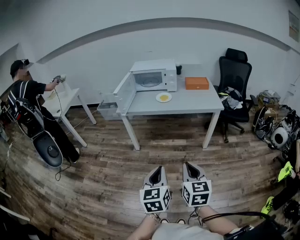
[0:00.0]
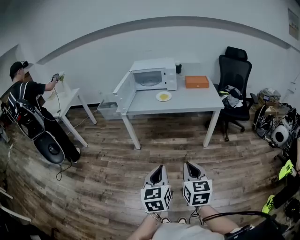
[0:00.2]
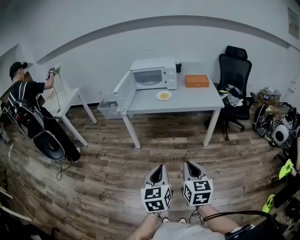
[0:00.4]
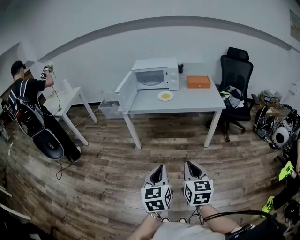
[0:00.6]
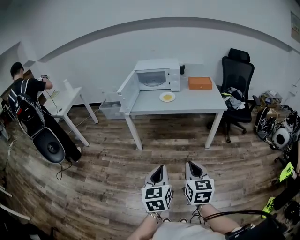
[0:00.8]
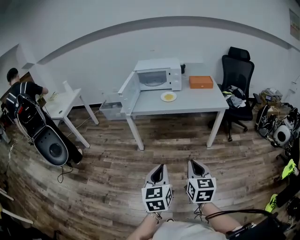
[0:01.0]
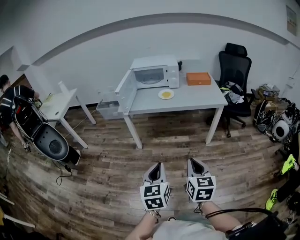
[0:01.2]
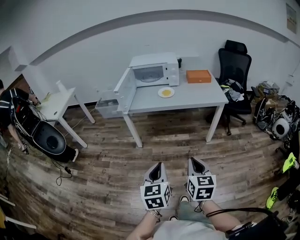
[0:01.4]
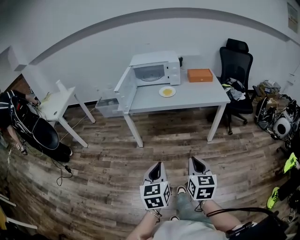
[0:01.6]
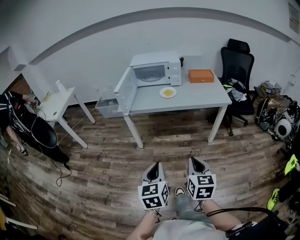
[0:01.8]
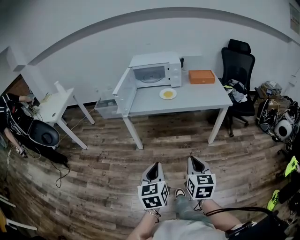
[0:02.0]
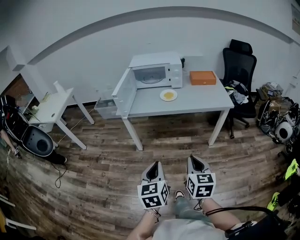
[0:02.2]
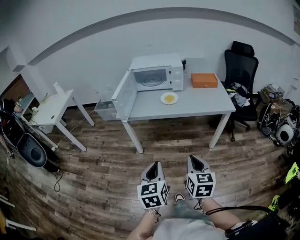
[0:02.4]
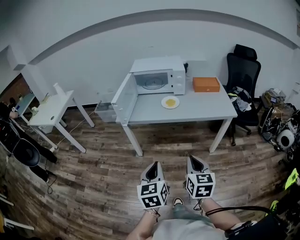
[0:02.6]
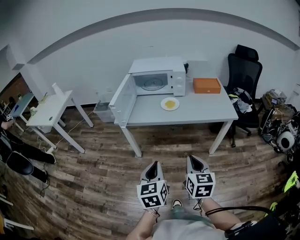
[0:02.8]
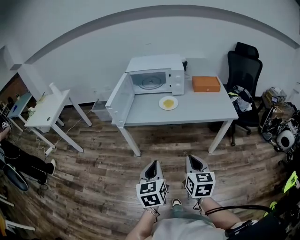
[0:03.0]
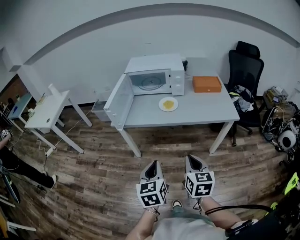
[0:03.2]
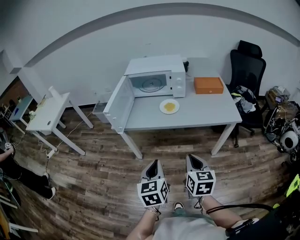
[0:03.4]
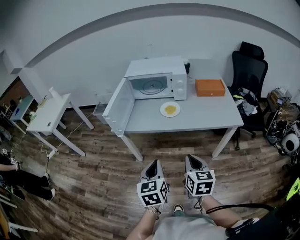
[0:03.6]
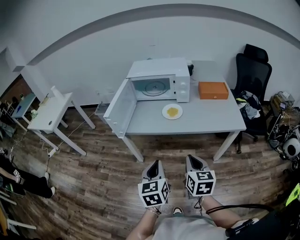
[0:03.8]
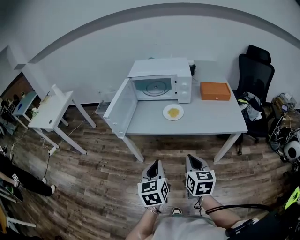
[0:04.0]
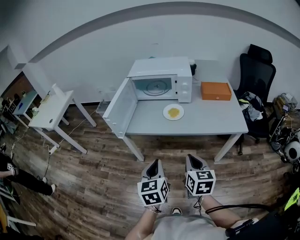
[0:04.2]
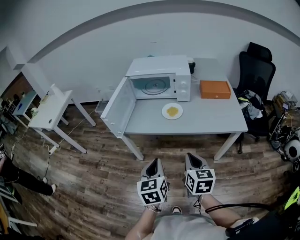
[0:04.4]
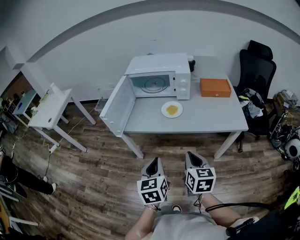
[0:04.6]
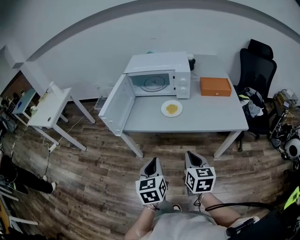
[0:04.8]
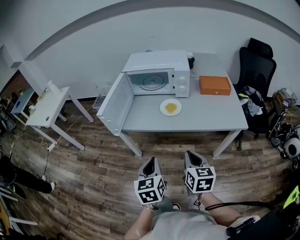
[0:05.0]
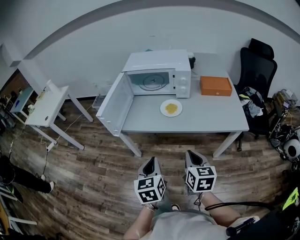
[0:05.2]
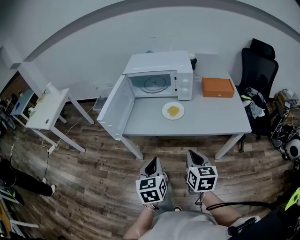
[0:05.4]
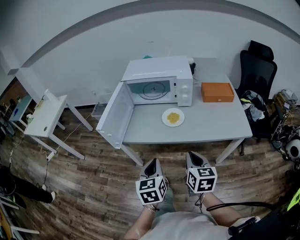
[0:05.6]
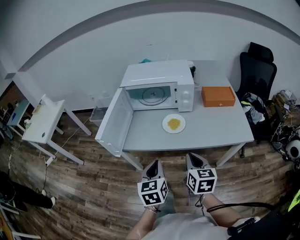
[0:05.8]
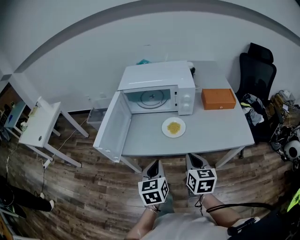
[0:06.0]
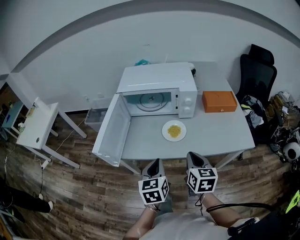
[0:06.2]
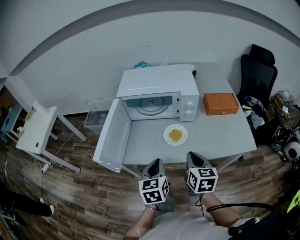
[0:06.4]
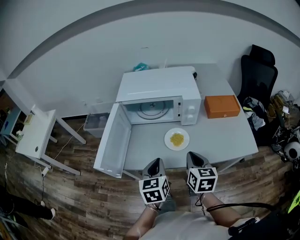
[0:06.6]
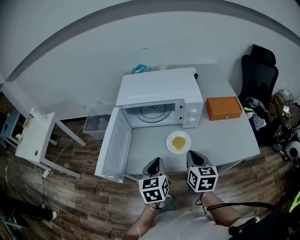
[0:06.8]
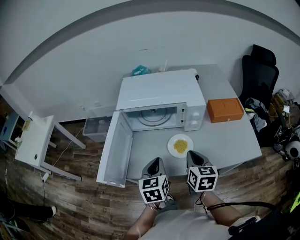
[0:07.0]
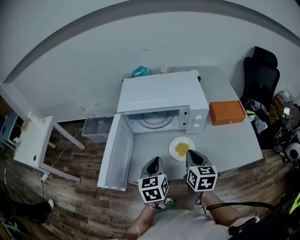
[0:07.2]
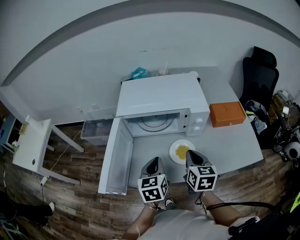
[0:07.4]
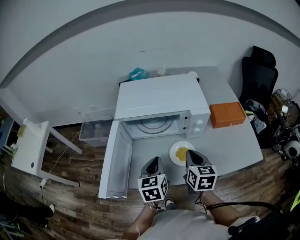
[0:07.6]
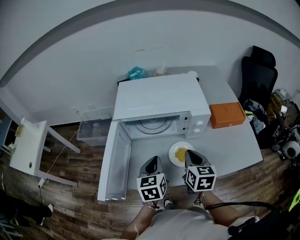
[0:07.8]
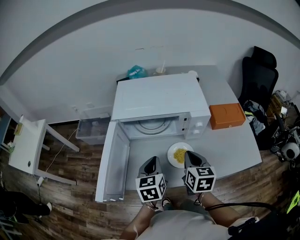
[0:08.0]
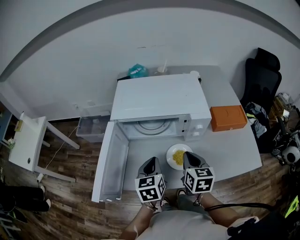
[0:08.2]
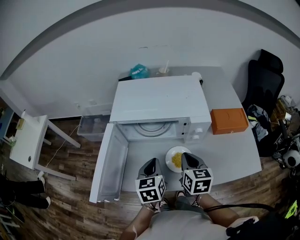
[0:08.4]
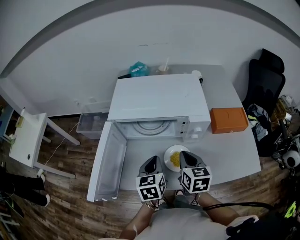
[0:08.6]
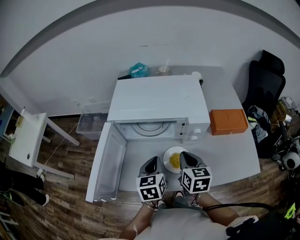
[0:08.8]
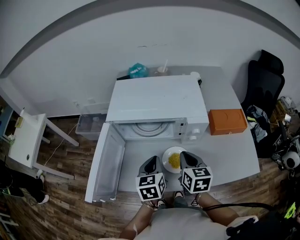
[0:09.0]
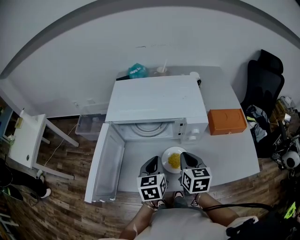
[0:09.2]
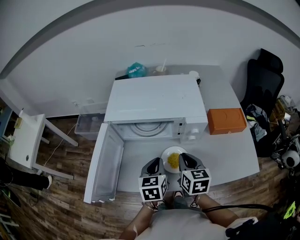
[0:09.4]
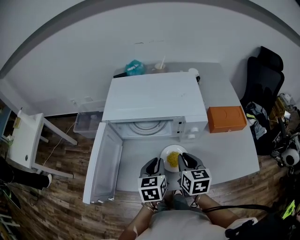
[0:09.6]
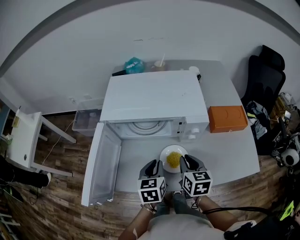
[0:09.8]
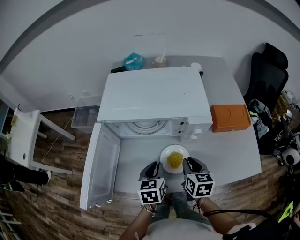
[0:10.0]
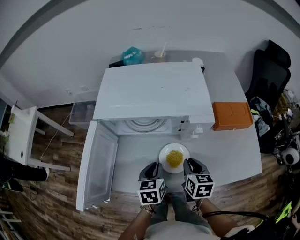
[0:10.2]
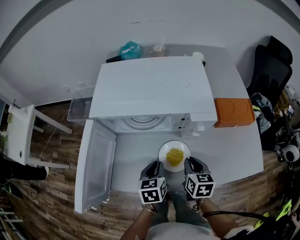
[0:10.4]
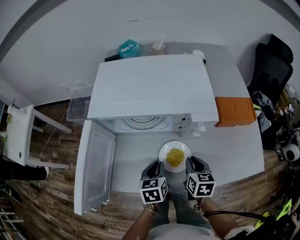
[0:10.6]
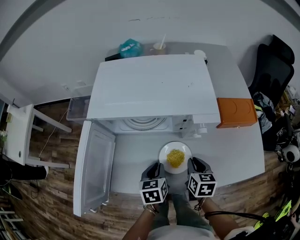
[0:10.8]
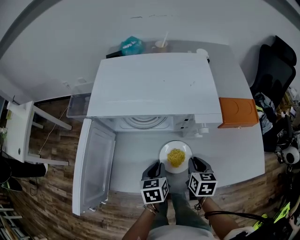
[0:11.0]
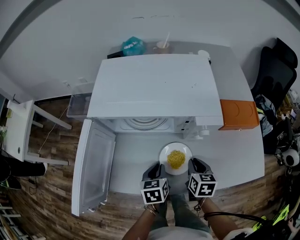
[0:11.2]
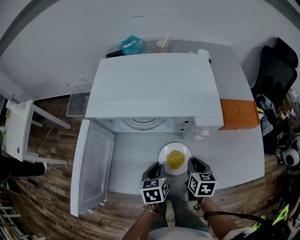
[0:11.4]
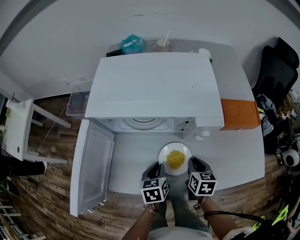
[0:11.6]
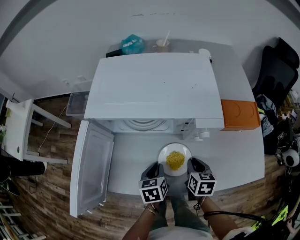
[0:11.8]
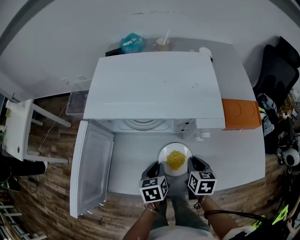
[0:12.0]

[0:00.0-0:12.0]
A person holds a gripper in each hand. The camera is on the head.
0:00.0 to 0:01.6: The right gripper heads forward, covering about 5 cm. The left gripper moves to the left and forward, approximately 10 cm.
0:01.6 to 0:03.0: The two grippers go roughly 20 cm forward.
0:03.0 to 0:04.4: The two grippers go approximately 10 cm forward.
0:04.4 to 0:06.0: The two grippers go approximately 15 cm forward.
0:06.0 to 0:07.6: The two grippers go some 20 cm forward.
0:07.6 to 0:09.0: The left gripper moves some 5 cm.
0:09.0 to 0:10.4: The grippers both shift downward by approximately 10 cm.
0:10.4 to 0:12.0: The right gripper goes approximately 5 cm downward.

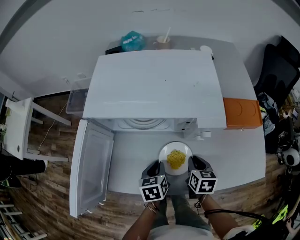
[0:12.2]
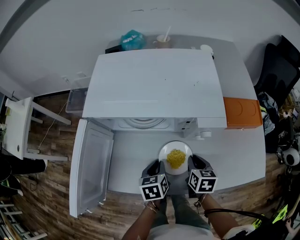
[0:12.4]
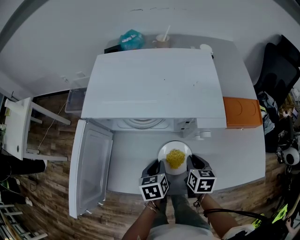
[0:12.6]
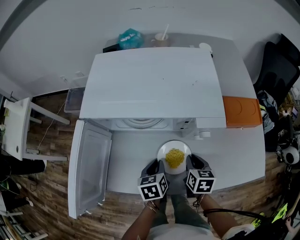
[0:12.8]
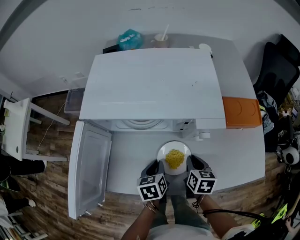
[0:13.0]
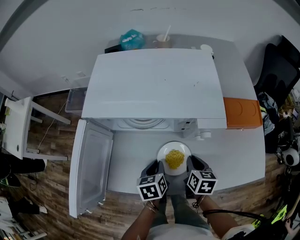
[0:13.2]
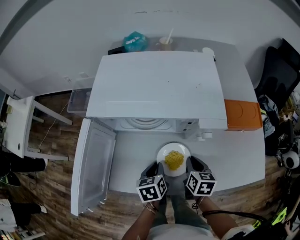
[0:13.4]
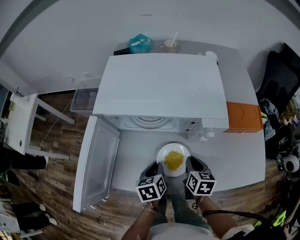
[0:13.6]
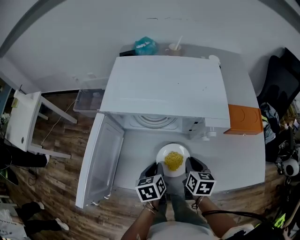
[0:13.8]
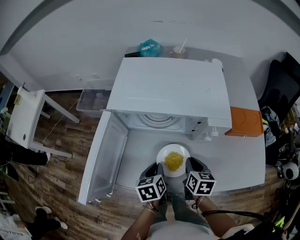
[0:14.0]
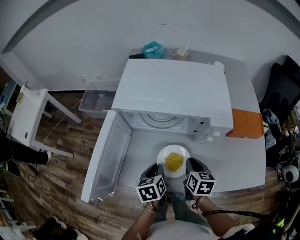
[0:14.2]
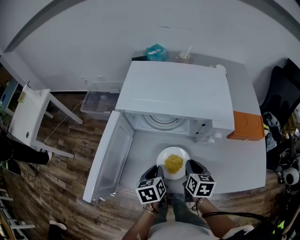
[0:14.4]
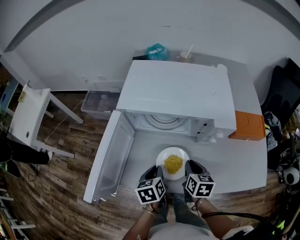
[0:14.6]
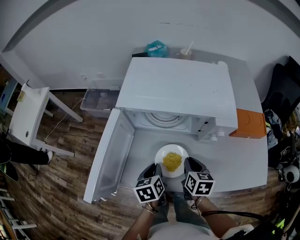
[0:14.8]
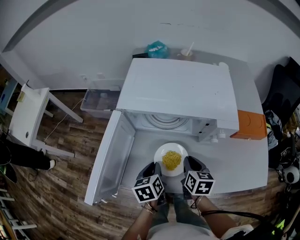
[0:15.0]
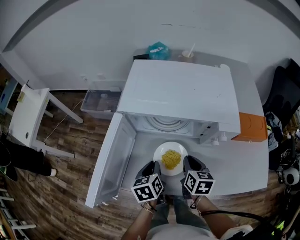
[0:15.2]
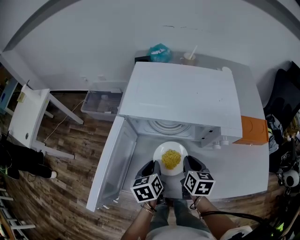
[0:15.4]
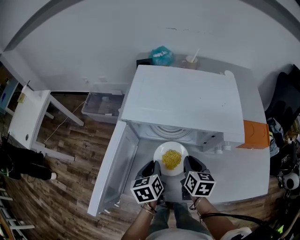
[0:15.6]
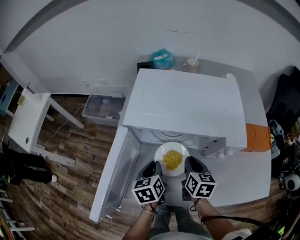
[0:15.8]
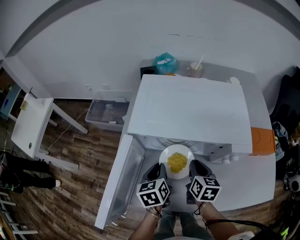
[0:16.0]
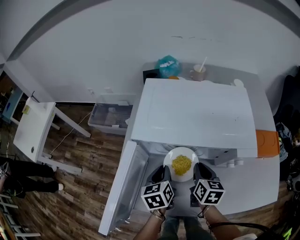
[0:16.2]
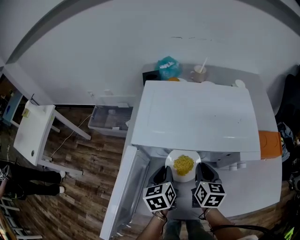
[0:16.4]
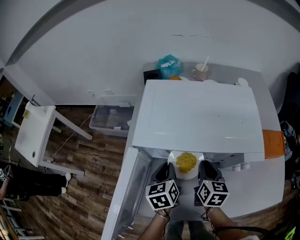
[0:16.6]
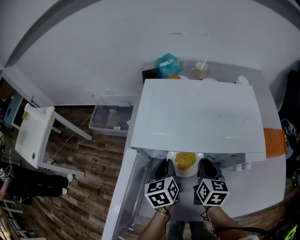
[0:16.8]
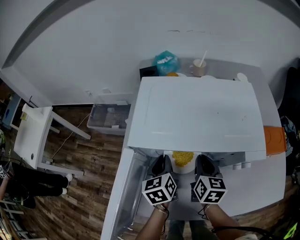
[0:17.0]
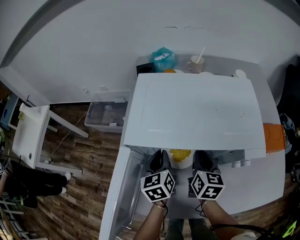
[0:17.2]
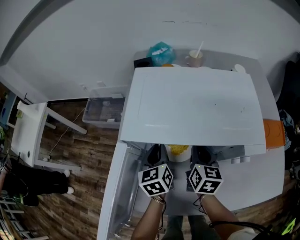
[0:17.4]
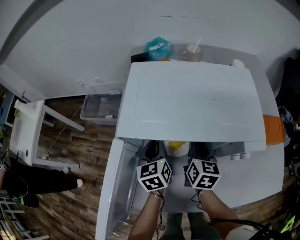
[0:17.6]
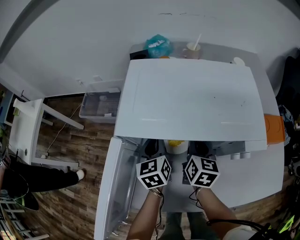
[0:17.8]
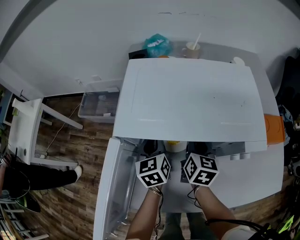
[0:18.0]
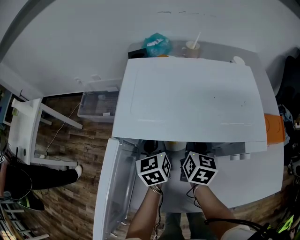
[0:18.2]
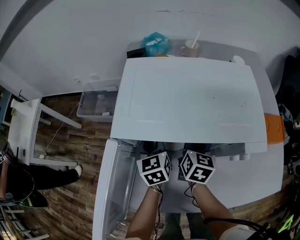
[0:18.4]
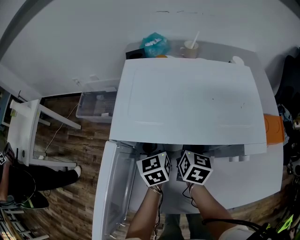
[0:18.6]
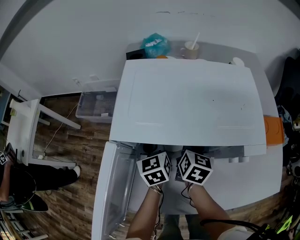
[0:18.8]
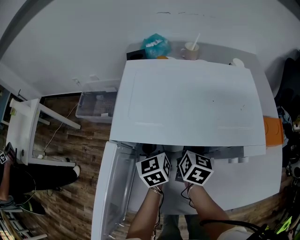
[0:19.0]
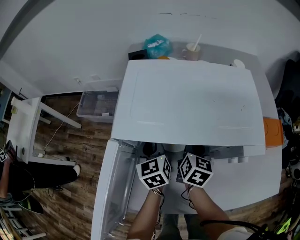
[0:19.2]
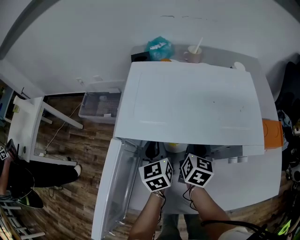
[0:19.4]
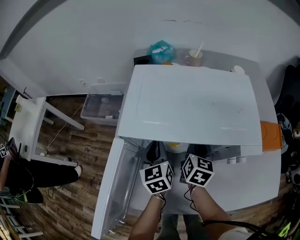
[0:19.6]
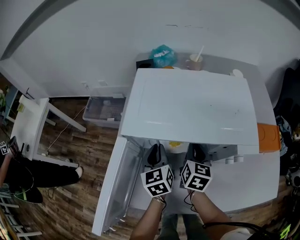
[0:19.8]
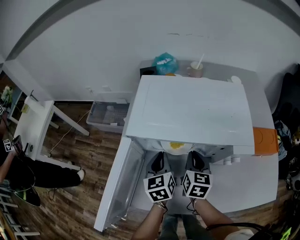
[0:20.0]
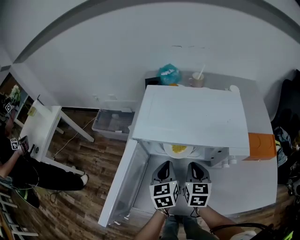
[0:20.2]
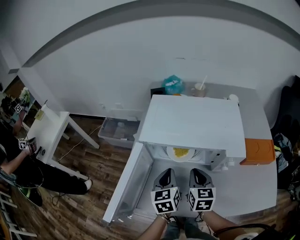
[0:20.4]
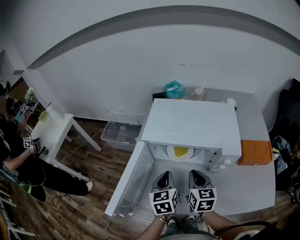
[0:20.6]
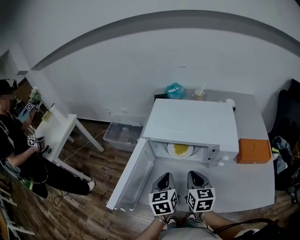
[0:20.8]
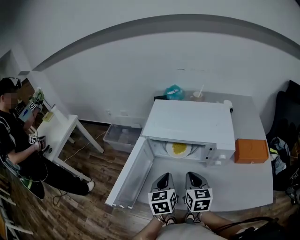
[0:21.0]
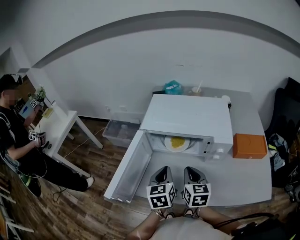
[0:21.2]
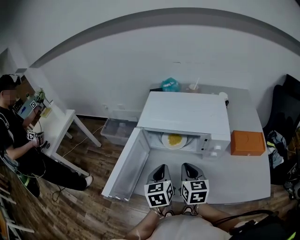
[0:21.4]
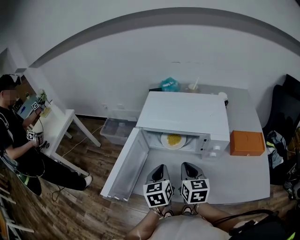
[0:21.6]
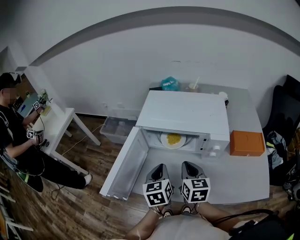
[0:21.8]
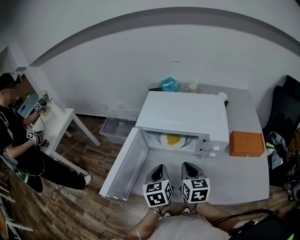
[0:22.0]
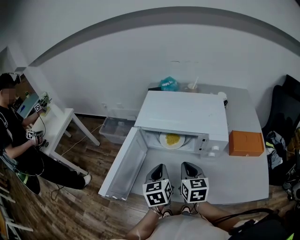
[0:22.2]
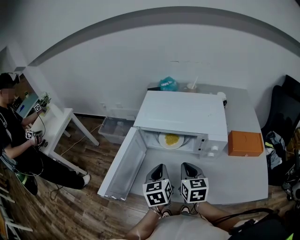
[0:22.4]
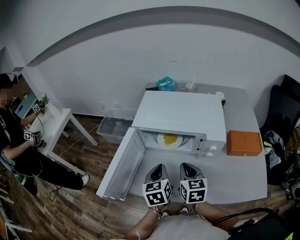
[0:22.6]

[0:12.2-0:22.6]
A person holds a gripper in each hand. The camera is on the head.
0:12.2 to 0:13.6: The grippers move only a little.
0:13.6 to 0:15.2: Both grippers move to the left, roughly 10 cm.
0:15.2 to 0:16.6: The grippers both shift forward by approximately 10 cm.
0:16.6 to 0:18.2: The two grippers go about 5 cm forward.
0:18.2 to 0:19.6: The grippers make only small movements.
0:19.6 to 0:21.2: The grippers both shift backward and upward by approximately 20 cm. The right gripper changes its angle by some 20 degrees.
0:21.2 to 0:22.6: There are only small adjustments of the grippers.

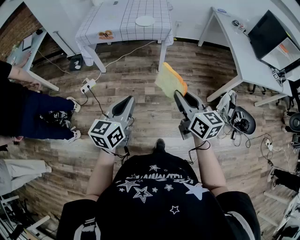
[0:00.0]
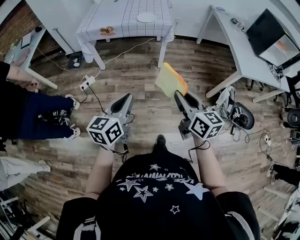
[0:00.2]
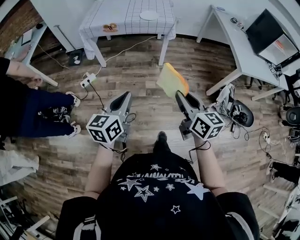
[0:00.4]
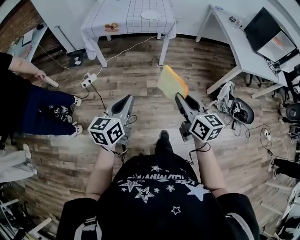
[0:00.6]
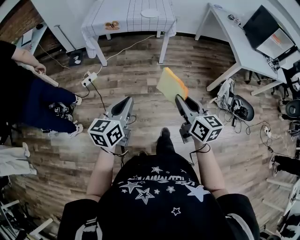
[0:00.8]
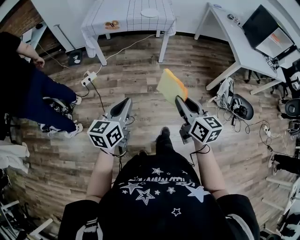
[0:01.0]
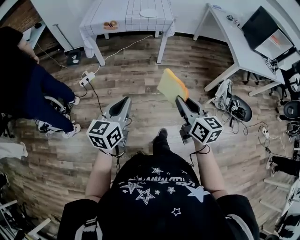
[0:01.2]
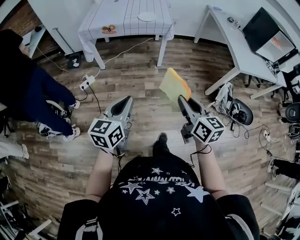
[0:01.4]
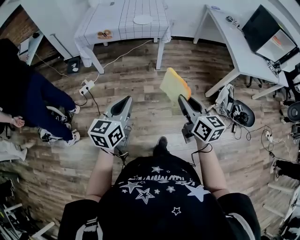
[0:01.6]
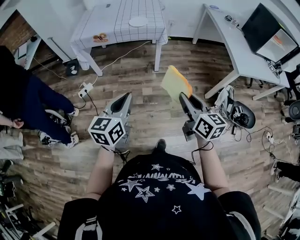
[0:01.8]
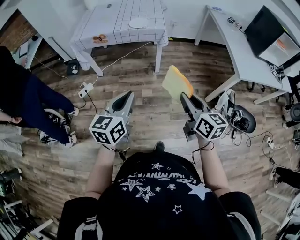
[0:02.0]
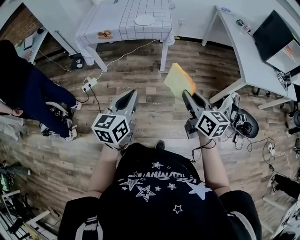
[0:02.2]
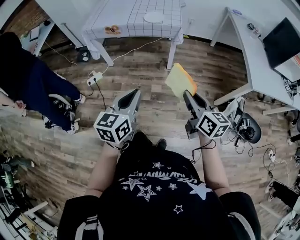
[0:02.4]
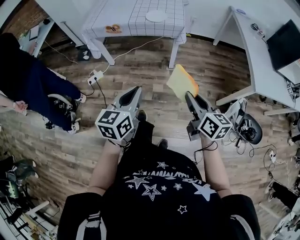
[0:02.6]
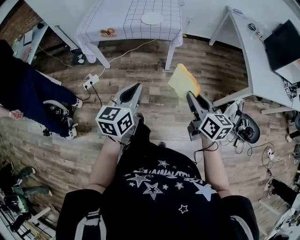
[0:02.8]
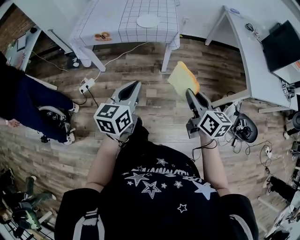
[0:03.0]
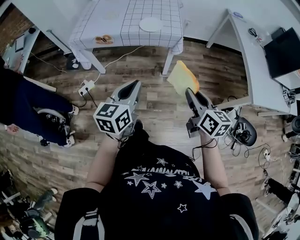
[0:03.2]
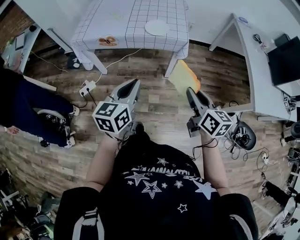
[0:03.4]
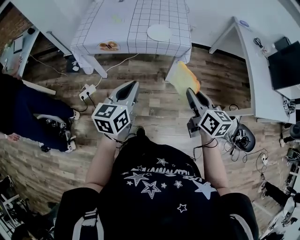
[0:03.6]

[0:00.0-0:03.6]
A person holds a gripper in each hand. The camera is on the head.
0:00.0 to 0:01.8: The right gripper reaches roughly 15 cm backward, then returns. The left gripper goes backward and returns, approximately 10 cm each way.
0:01.8 to 0:03.6: The grippers both shift forward by some 30 cm.
